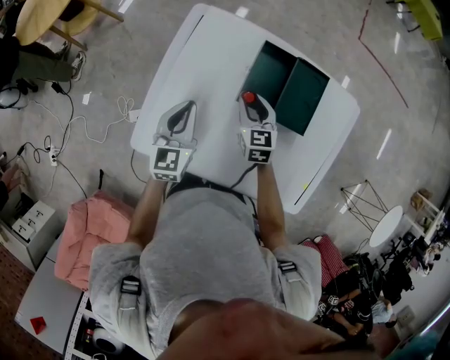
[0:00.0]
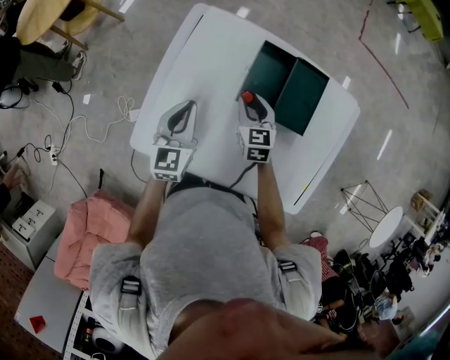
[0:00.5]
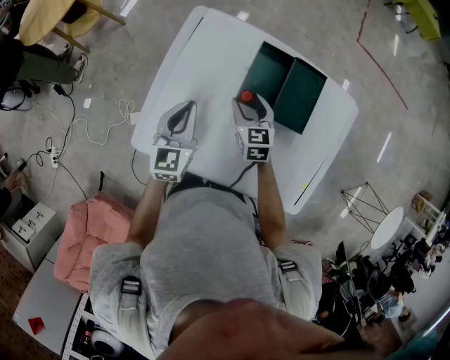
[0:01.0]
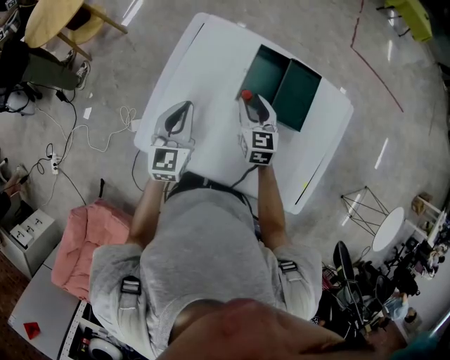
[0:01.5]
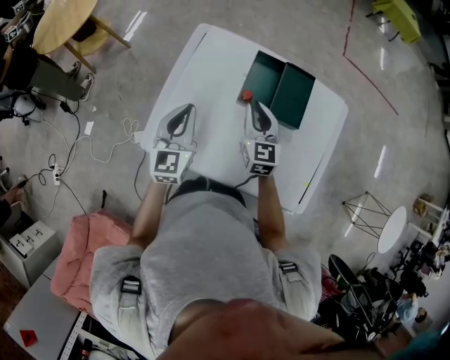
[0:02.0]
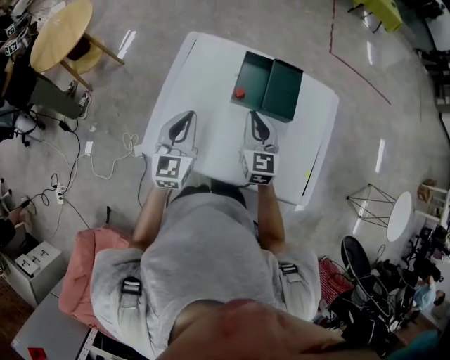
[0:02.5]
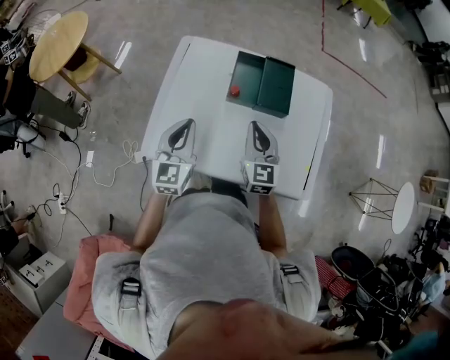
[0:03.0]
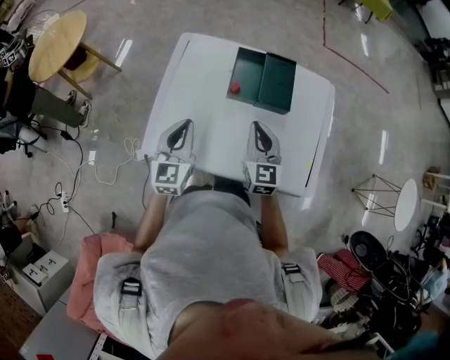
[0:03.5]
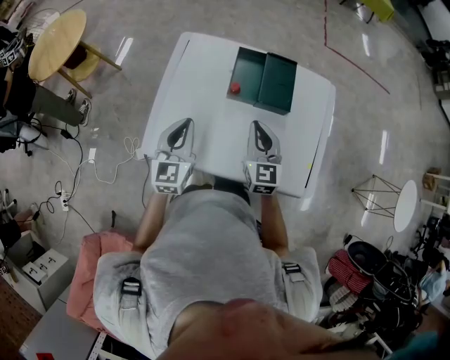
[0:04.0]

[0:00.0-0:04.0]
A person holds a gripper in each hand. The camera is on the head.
0:00.0 to 0:02.0: Both grippers move upward and backward, roughly 10 cm. The right gripper opens, then closes once more.
0:02.0 to 0:04.0: The right gripper moves backward, some 10 cm. Meanwhile the left gripper goes about 5 cm backward.

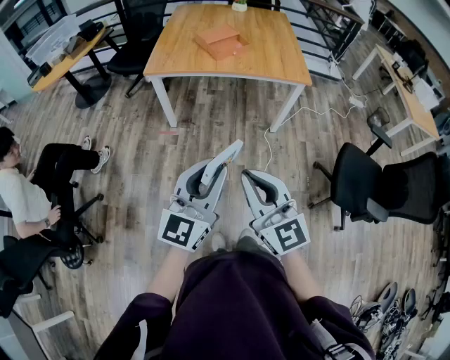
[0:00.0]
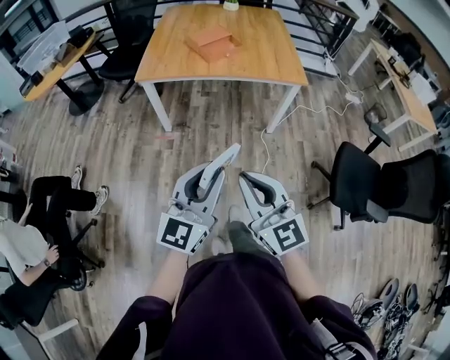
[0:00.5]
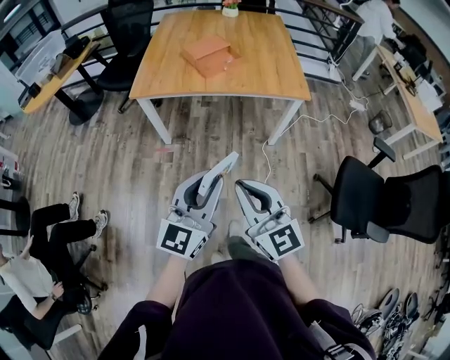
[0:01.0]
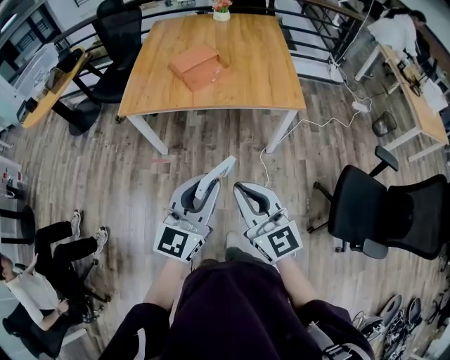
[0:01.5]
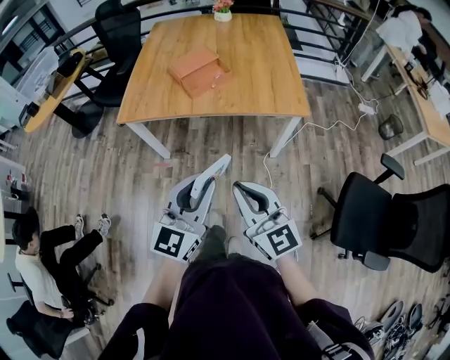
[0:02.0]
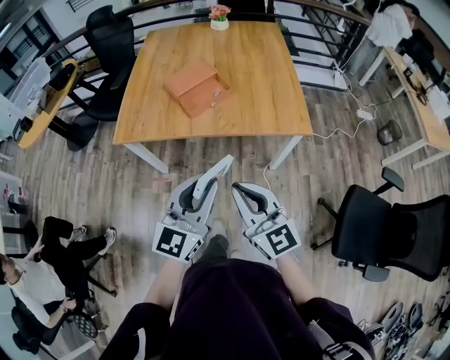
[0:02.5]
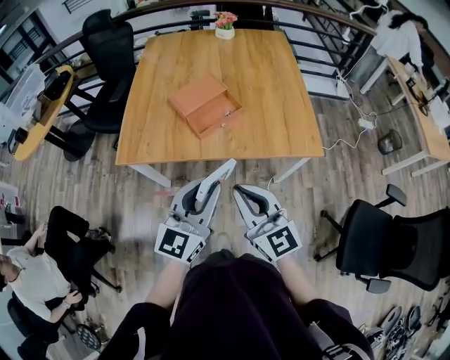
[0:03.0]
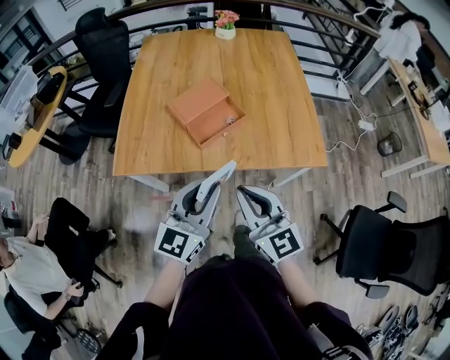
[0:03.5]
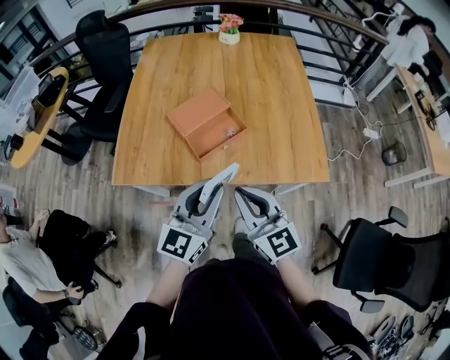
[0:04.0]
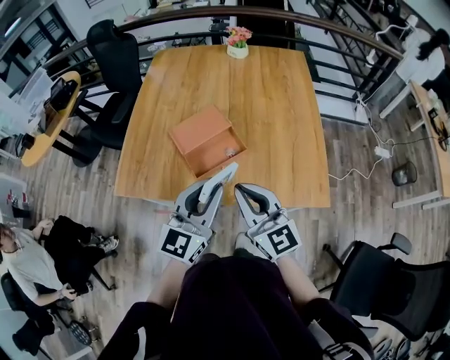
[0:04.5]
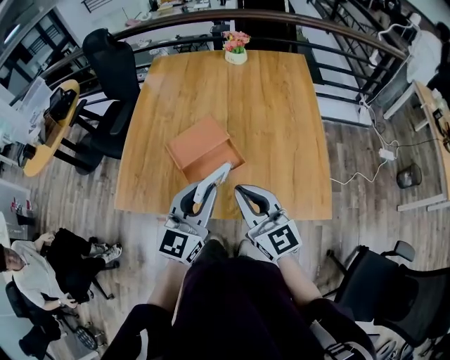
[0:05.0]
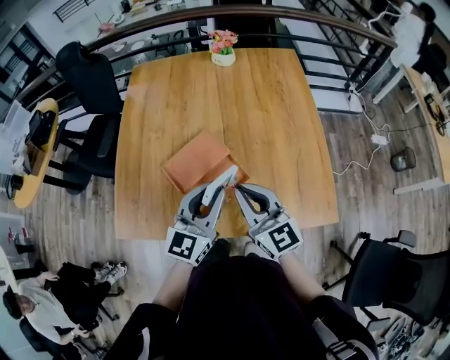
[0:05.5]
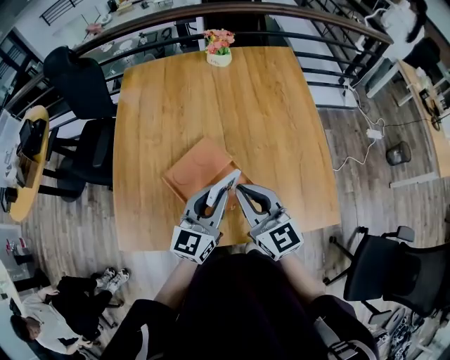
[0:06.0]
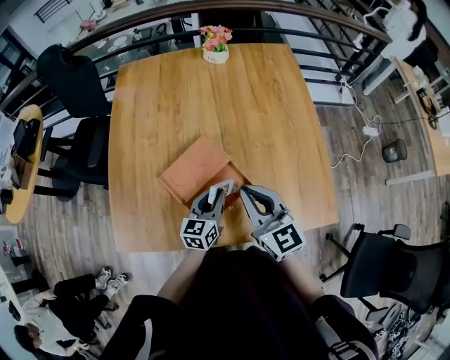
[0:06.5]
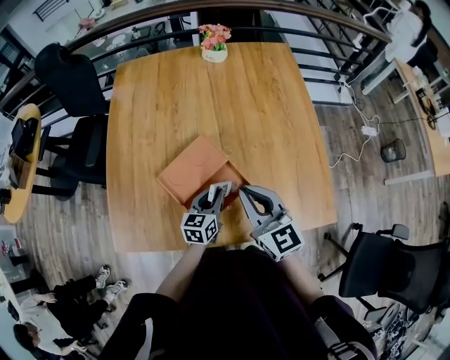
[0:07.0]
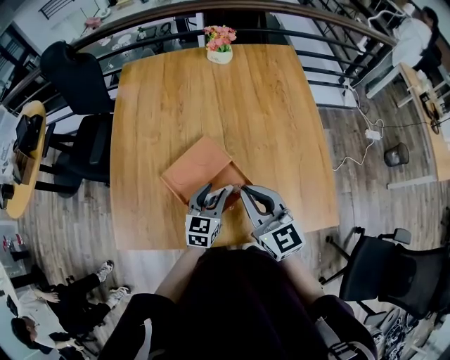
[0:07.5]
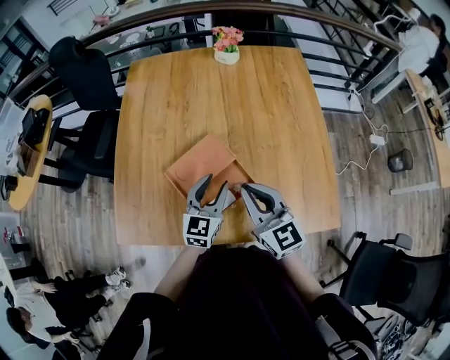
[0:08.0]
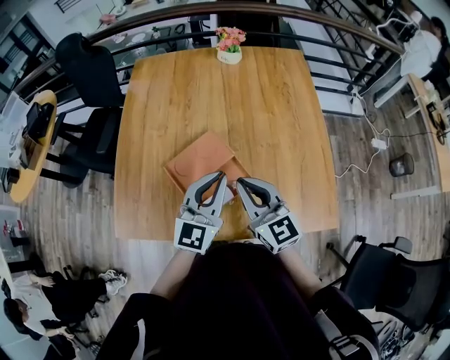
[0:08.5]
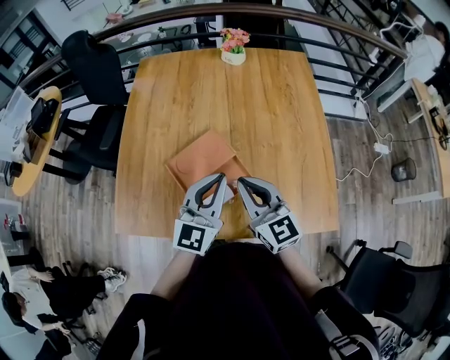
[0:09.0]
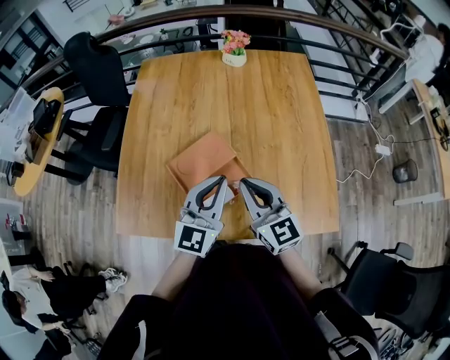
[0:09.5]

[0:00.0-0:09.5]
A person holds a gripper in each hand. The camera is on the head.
0:00.0 to 0:02.0: The two grippers go approximately 40 cm forward and to the right.
0:02.0 to 0:04.0: Both grippers are carried forward, some 40 cm.
0:04.0 to 0:05.5: The grippers both shift forward by roughly 30 cm.
0:05.5 to 0:07.5: The left gripper travels downward and forward by approximately 20 cm, and swivels about 20 degrees. Meanwhile the right gripper shifts about 5 cm forward.
0:07.5 to 0:09.5: The left gripper moves upward, some 20 cm, changes its angle by some 30 degrees, and closes.

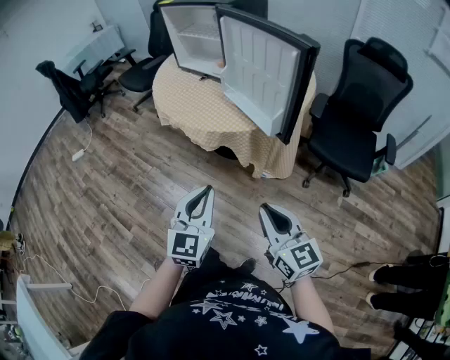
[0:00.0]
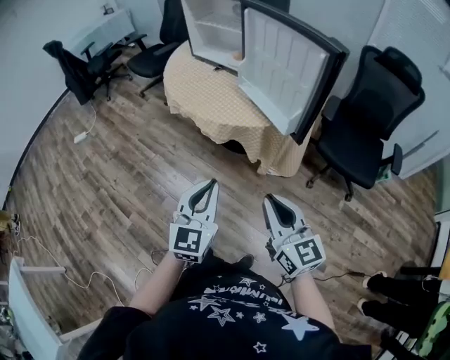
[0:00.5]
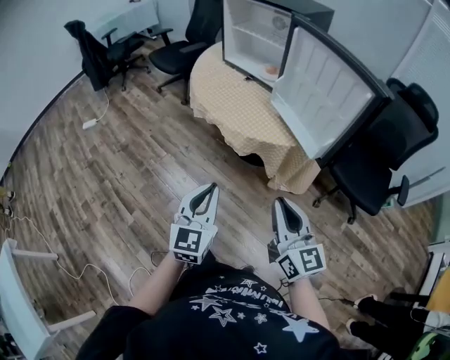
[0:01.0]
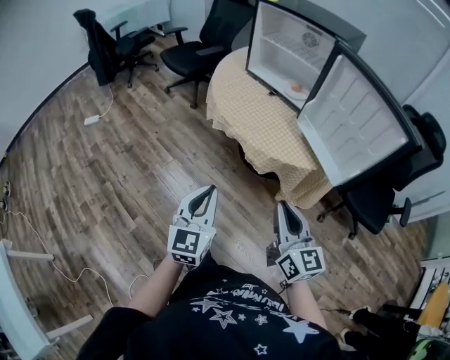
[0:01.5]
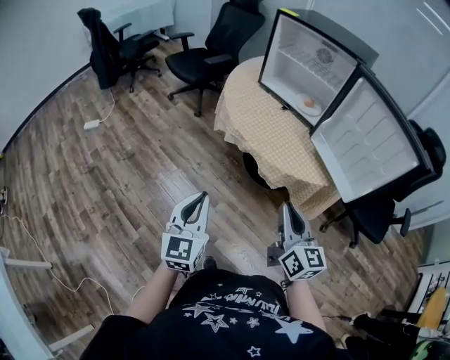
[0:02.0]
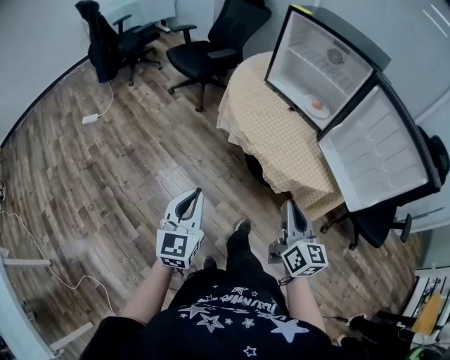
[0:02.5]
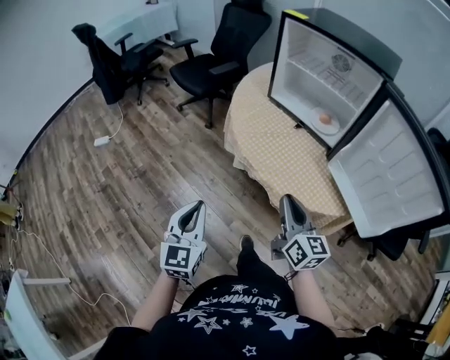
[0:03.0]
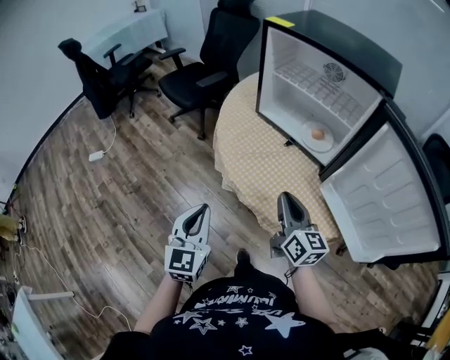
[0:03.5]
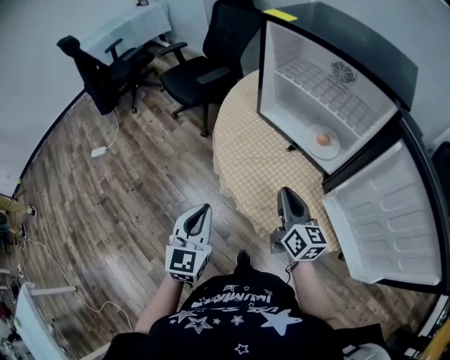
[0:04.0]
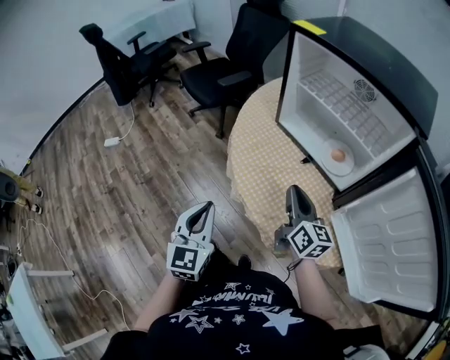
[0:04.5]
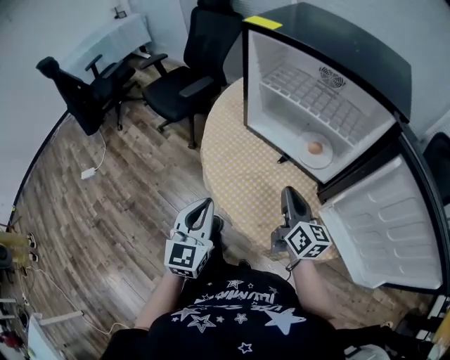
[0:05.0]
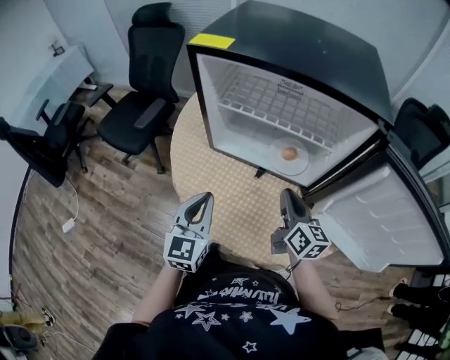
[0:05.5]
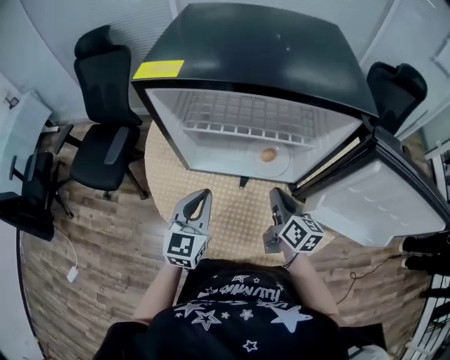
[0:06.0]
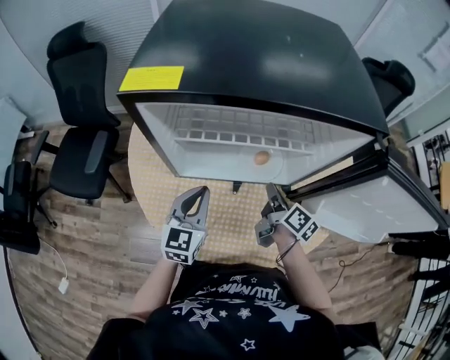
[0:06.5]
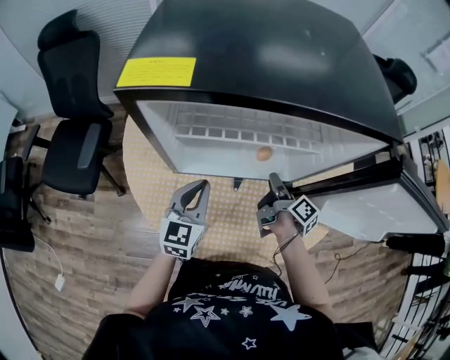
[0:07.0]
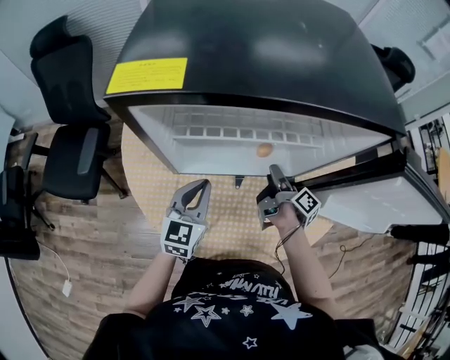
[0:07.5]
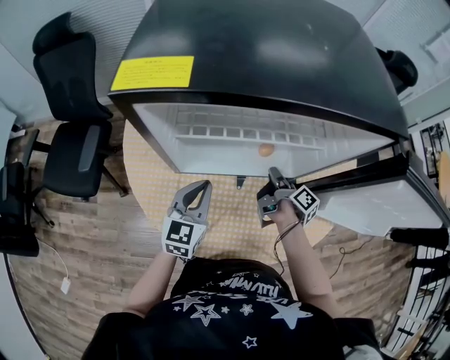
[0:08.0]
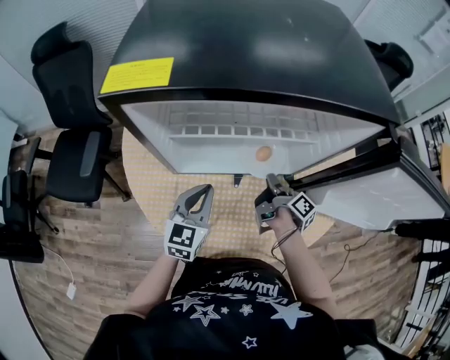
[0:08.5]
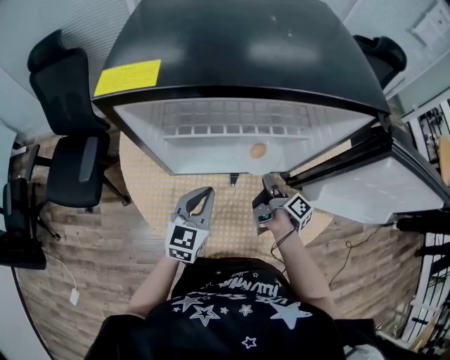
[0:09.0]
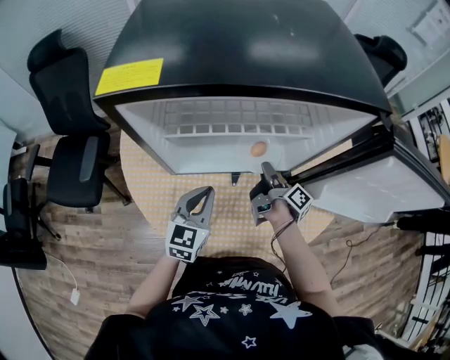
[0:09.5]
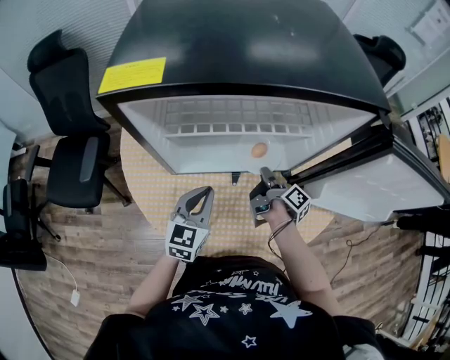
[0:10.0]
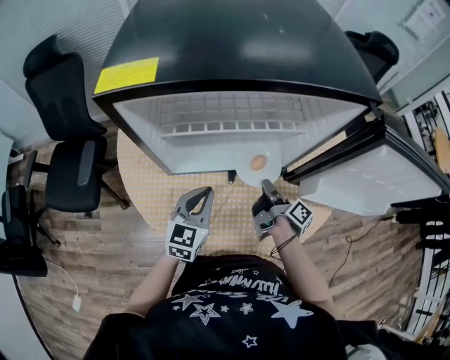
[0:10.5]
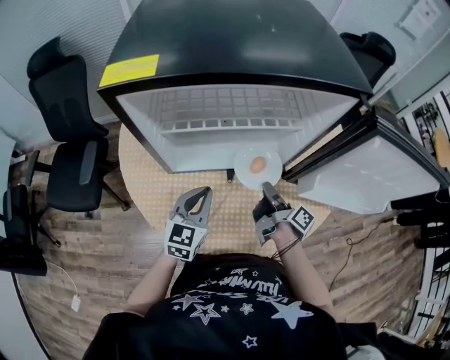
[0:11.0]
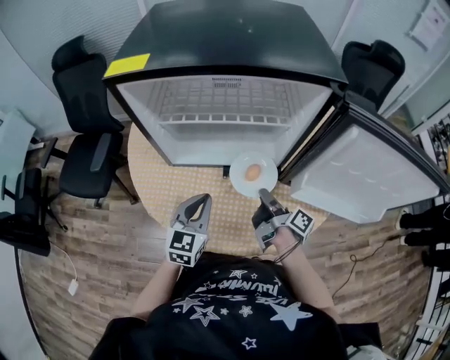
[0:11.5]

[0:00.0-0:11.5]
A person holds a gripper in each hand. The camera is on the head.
0:00.0 to 0:02.0: Both grippers move to the left and forward, roughly 35 cm.
0:02.0 to 0:04.0: The two grippers go approximately 30 cm forward.
0:04.0 to 0:06.0: The right gripper changes place by roughly 15 cm, and swivels approximately 40 degrees. The left gripper ends up about 30 cm from where it was, and turns by some 40 degrees.
0:06.0 to 0:07.5: The right gripper goes about 10 cm downward and forward, twists roughly 50 degrees clockwise, seen from behind, and opens up. Meanwhile the left gripper is displaced forward and downward by roughly 10 cm.
0:07.5 to 0:09.5: The right gripper closes and opens again.
0:09.5 to 0:11.5: The left gripper moves backward, some 5 cm, while the right gripper shifts roughly 10 cm backward, and closes.

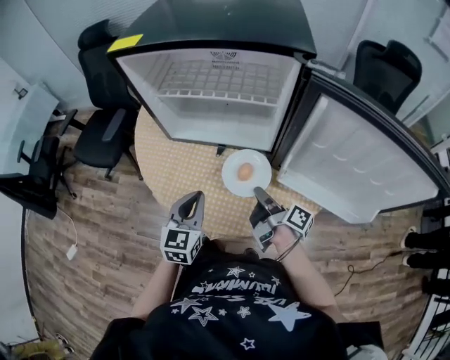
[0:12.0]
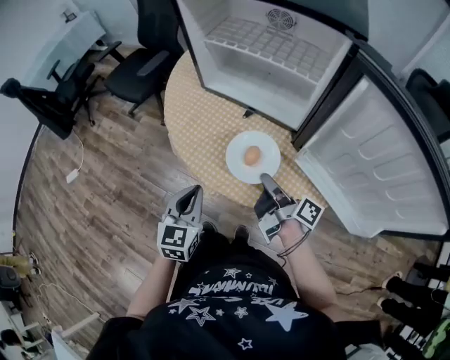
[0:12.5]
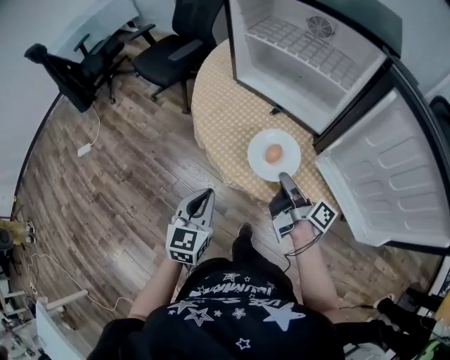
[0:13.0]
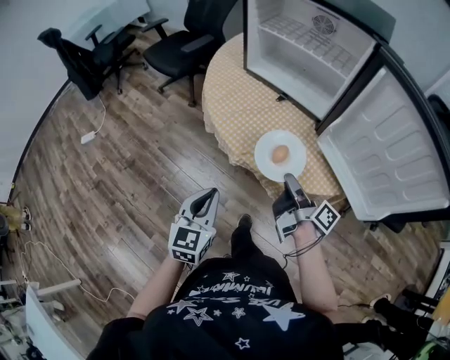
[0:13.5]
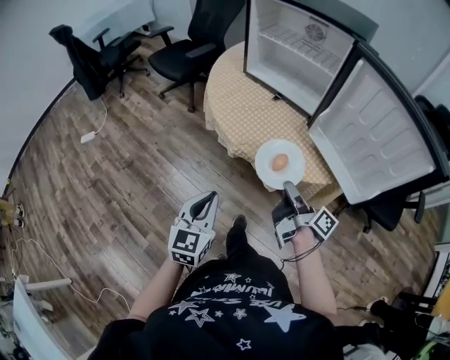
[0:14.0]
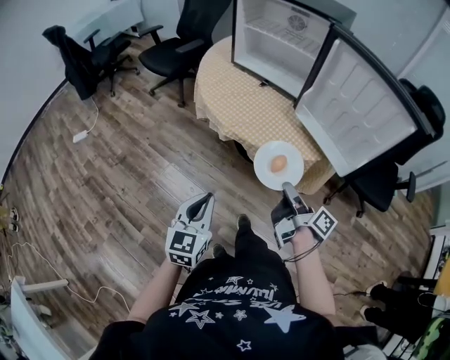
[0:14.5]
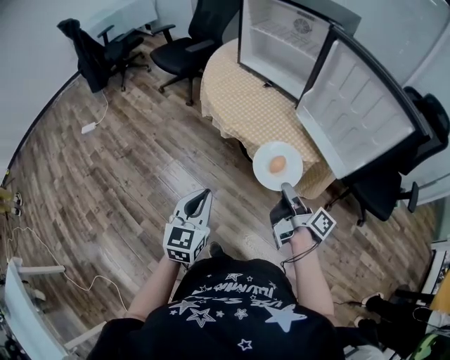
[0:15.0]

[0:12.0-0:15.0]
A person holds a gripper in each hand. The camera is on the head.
0:12.0 to 0:13.5: The left gripper is displaced backward by roughly 25 cm, and swivels some 20 degrees, while the right gripper goes approximately 15 cm backward.
0:13.5 to 0:15.0: The grippers both shift backward by about 20 cm.
